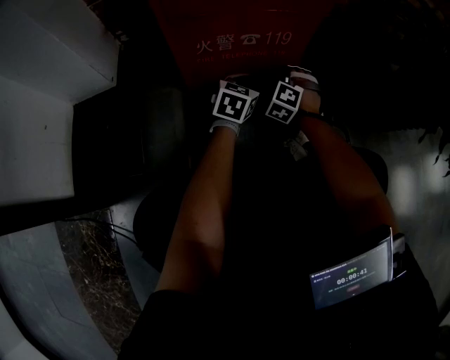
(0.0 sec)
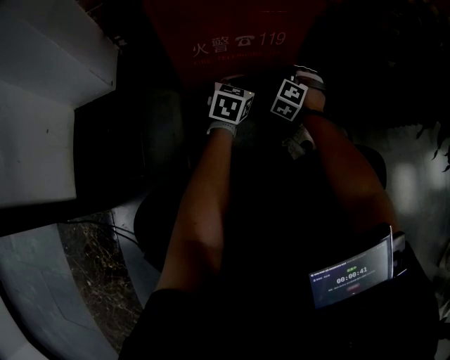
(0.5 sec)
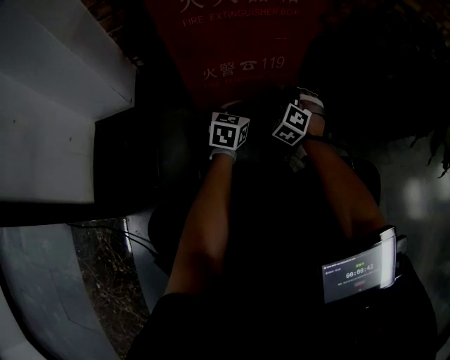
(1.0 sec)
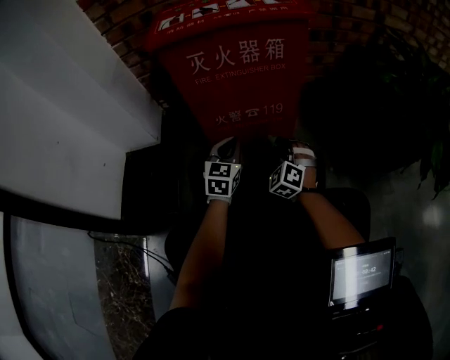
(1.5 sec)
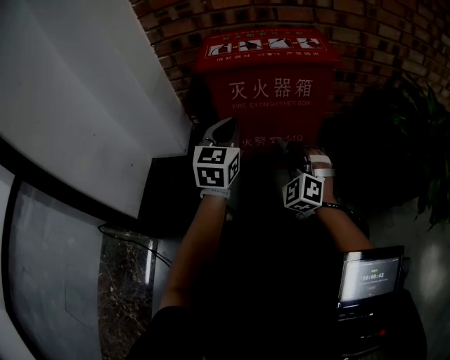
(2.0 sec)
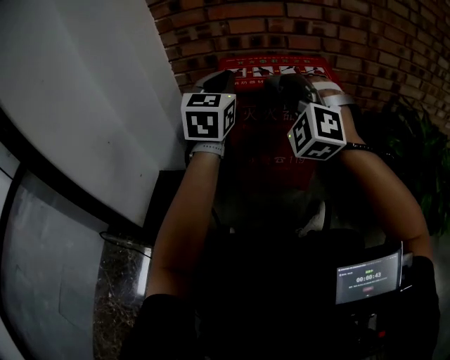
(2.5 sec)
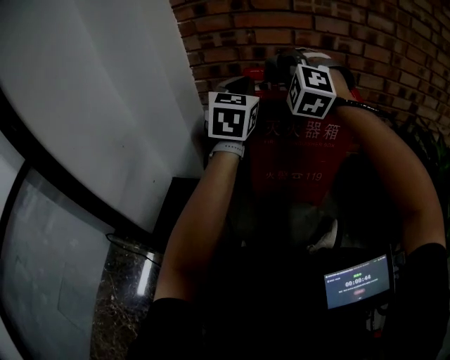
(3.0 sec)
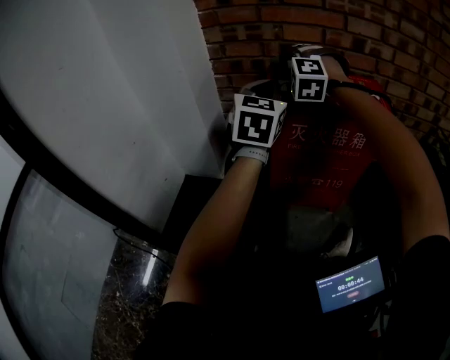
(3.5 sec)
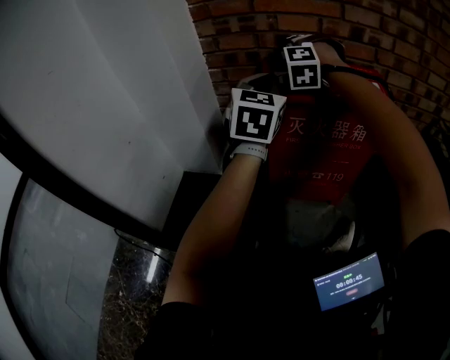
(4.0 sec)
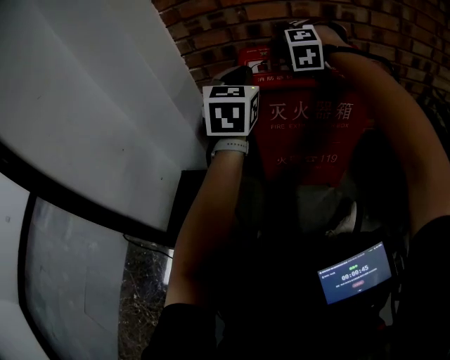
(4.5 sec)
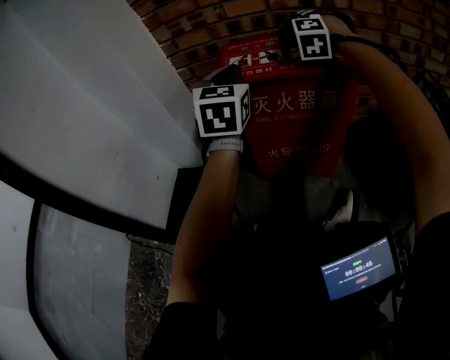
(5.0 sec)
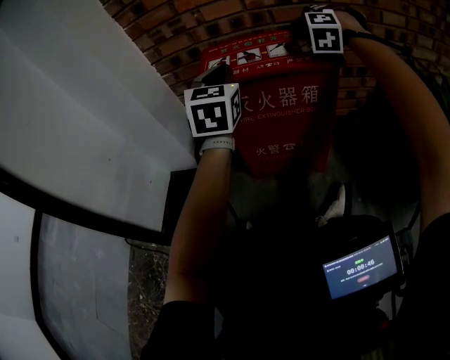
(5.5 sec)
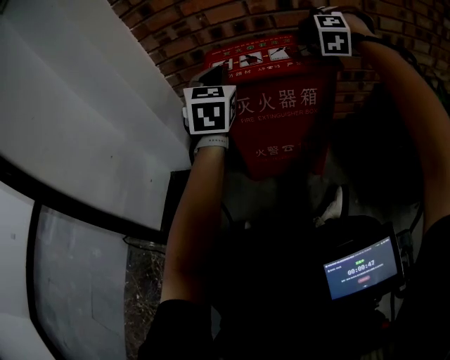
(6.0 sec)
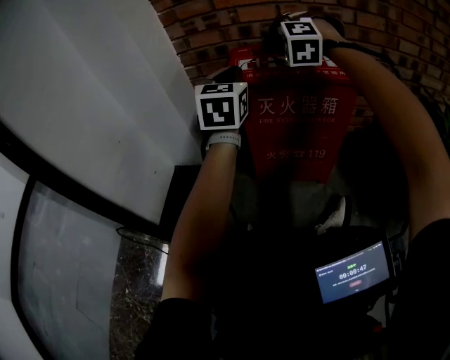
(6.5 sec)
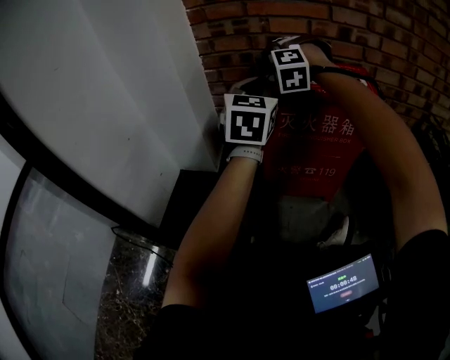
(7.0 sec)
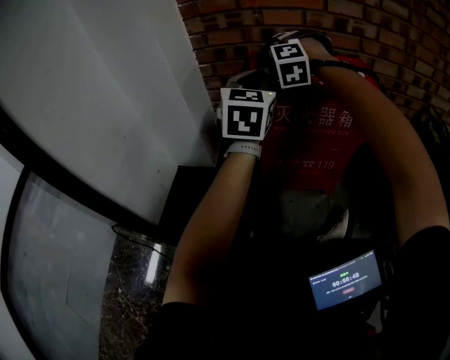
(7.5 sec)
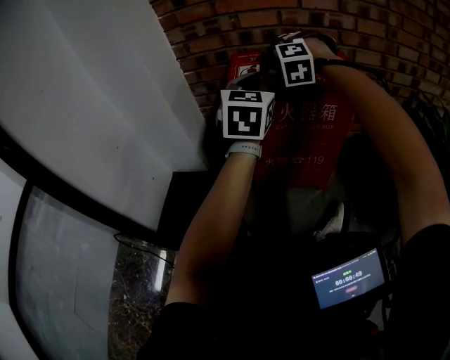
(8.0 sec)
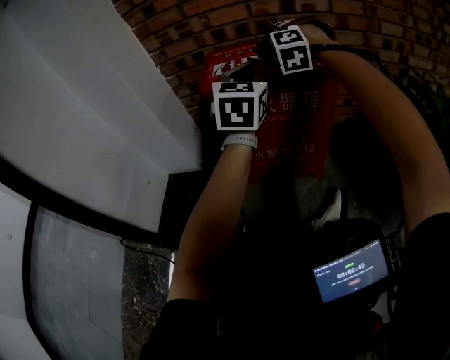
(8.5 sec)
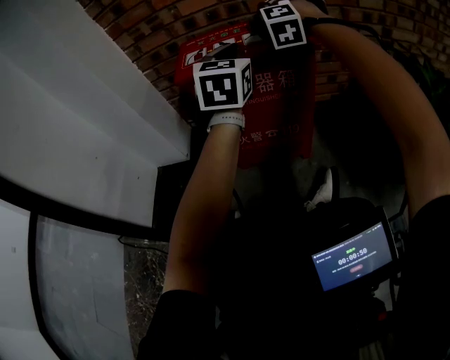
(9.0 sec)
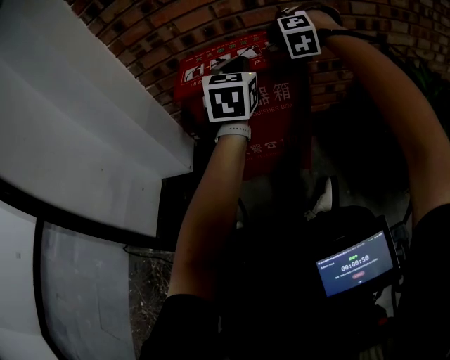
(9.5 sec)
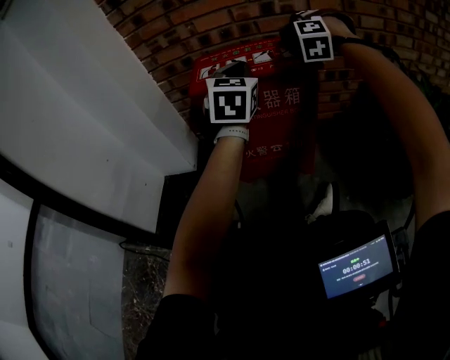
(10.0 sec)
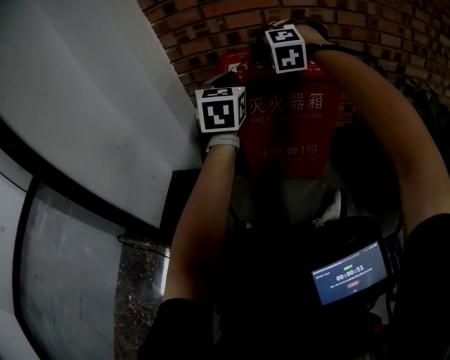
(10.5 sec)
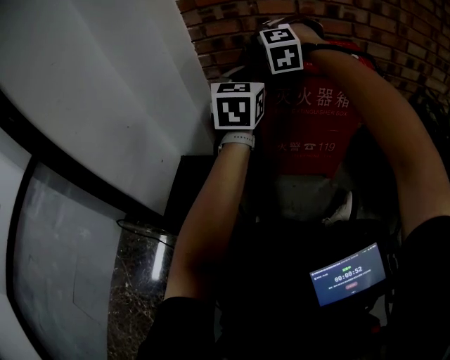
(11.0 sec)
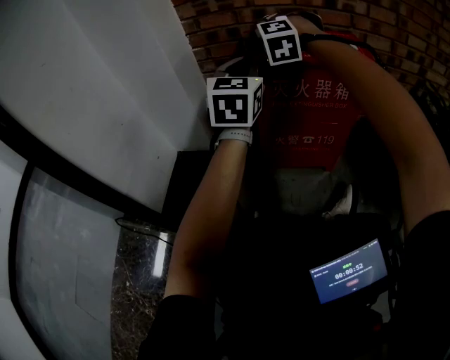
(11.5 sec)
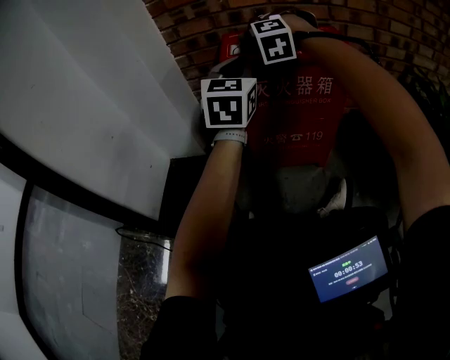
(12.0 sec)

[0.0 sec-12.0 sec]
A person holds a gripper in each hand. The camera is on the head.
0.0 sec to 2.0 sec: The left gripper goes some 35 cm upward, and swivels approximately 30 degrees.
2.0 sec to 4.0 sec: The left gripper heads upward, covering some 15 cm.
4.0 sec to 6.0 sec: The left gripper moves approximately 5 cm.
10.0 sec to 12.0 sec: The left gripper ends up some 10 cm from where it was.

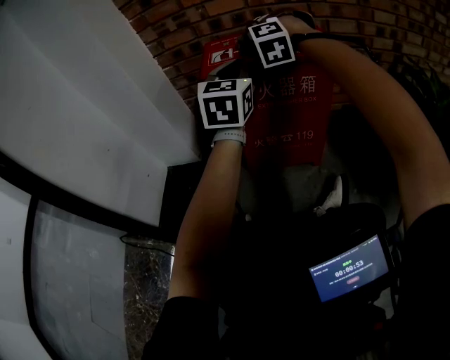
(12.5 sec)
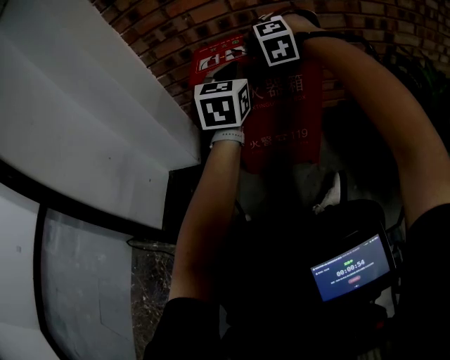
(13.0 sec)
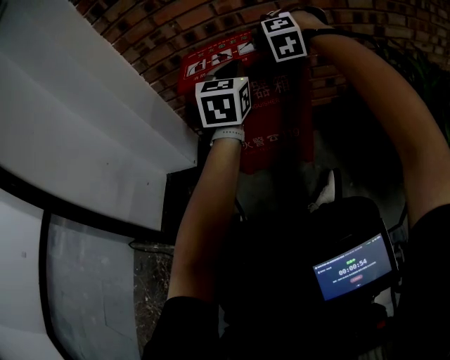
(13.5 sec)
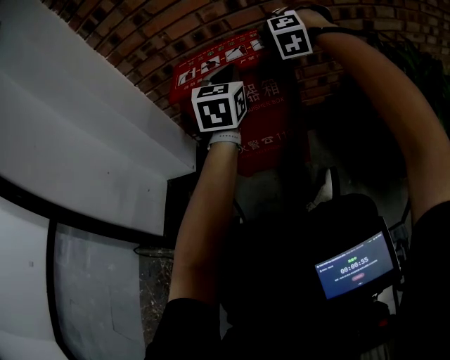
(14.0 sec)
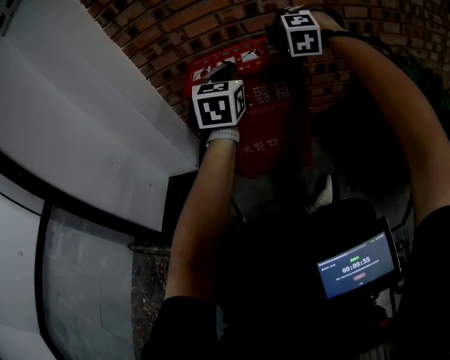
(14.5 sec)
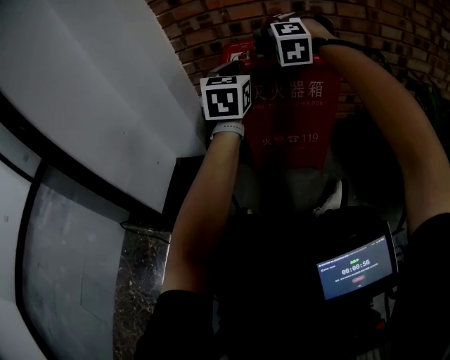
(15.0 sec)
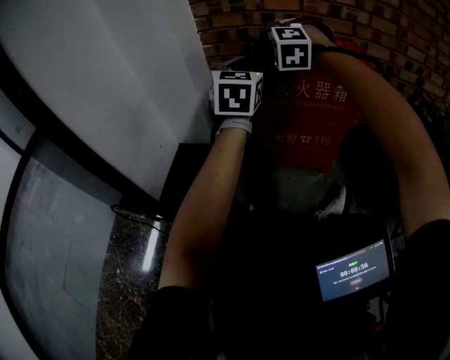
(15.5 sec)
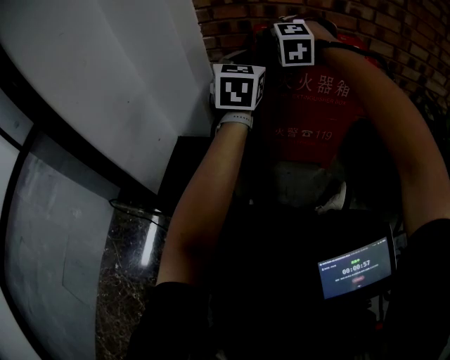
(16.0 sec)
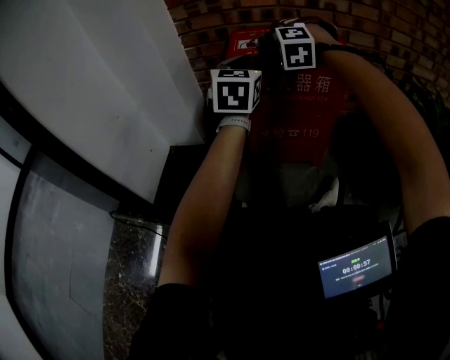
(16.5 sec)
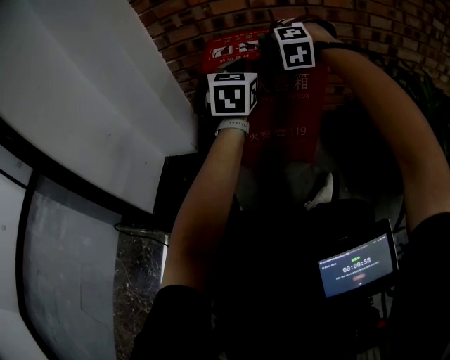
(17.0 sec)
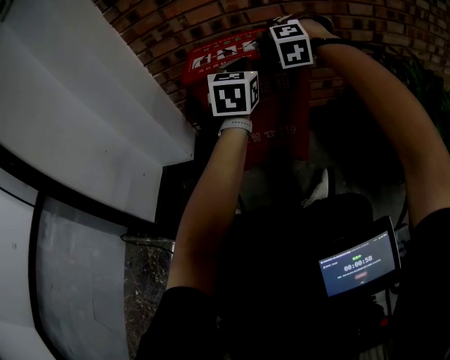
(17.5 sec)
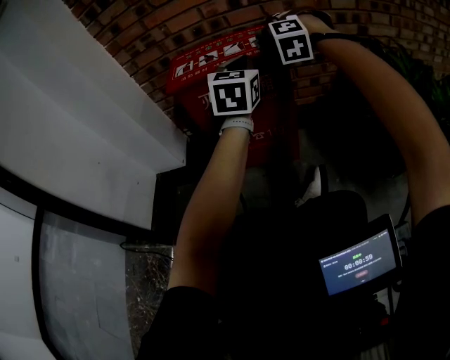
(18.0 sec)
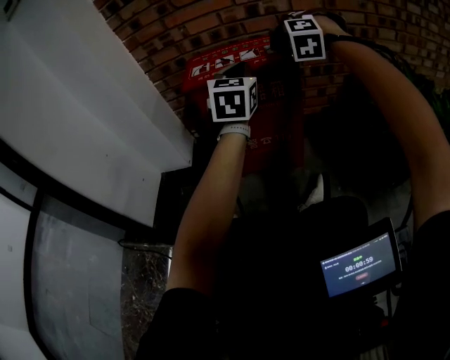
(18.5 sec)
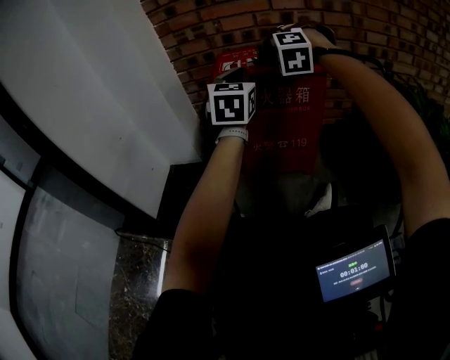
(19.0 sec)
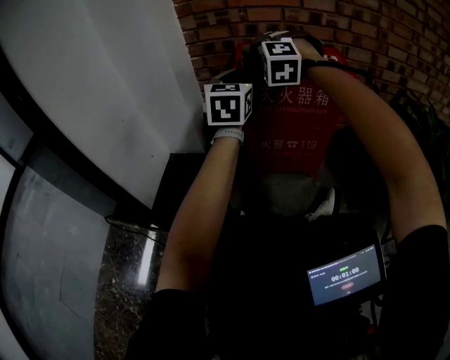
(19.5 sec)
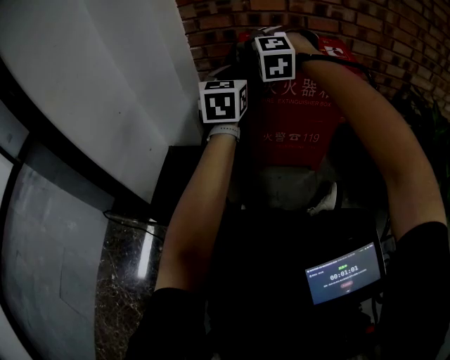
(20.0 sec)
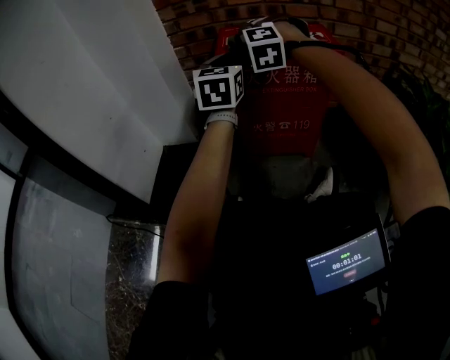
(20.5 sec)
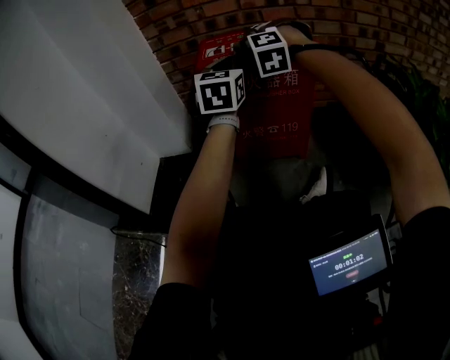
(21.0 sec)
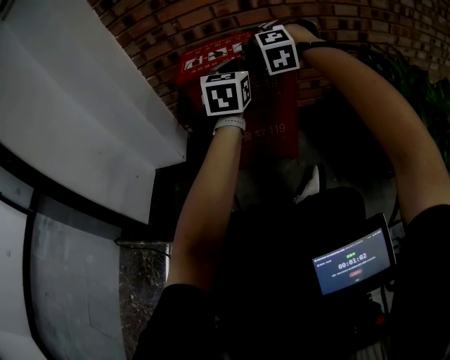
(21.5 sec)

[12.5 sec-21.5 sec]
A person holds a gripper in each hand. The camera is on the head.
12.5 sec to 14.5 sec: The left gripper moves some 5 cm.
17.0 sec to 19.5 sec: The left gripper ends up roughly 10 cm from where it was.
19.5 sec to 21.5 sec: The left gripper moves some 15 cm.

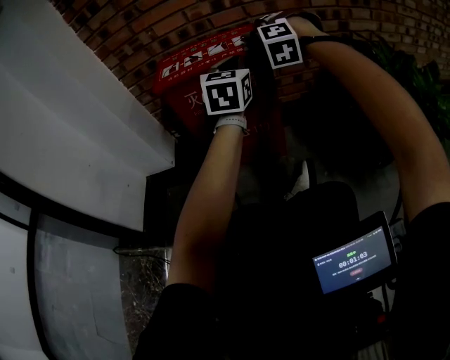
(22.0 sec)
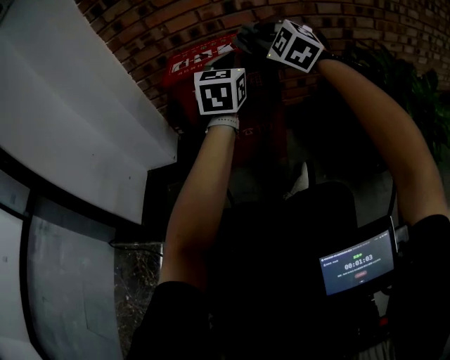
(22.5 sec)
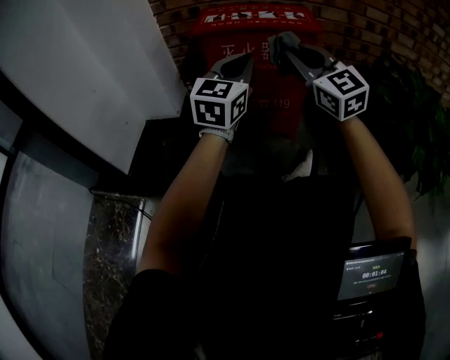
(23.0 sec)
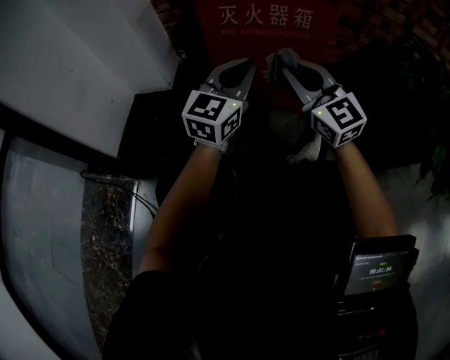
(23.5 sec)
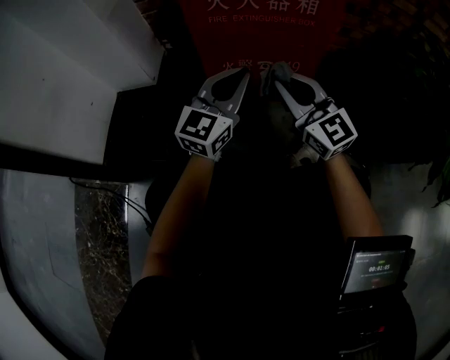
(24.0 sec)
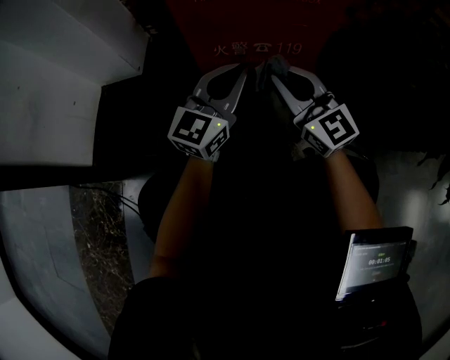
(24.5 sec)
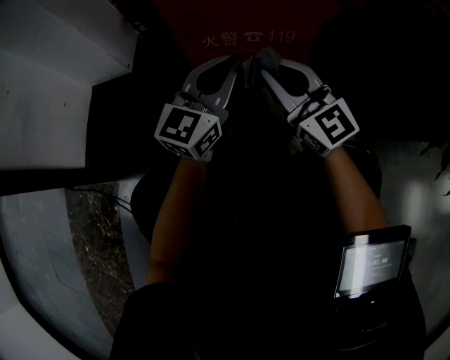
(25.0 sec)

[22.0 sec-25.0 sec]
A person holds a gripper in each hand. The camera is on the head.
22.0 sec to 23.5 sec: The left gripper heads downward, covering about 15 cm.
23.5 sec to 25.0 sec: The left gripper is displaced downward by some 10 cm.

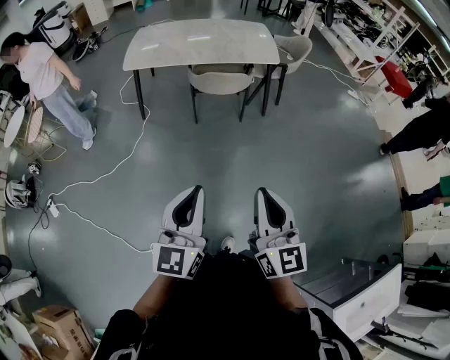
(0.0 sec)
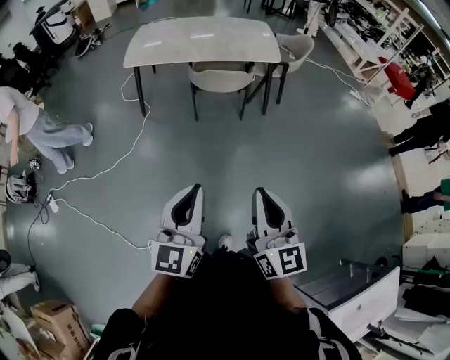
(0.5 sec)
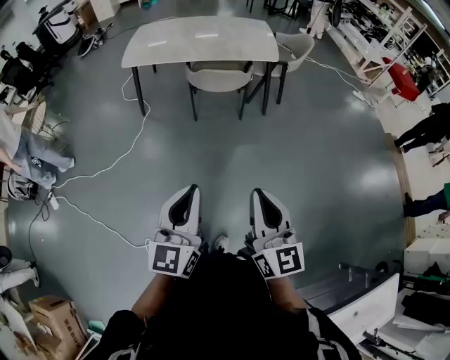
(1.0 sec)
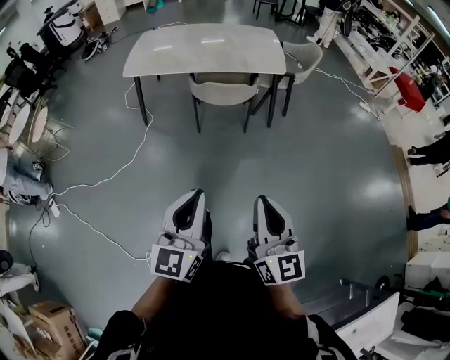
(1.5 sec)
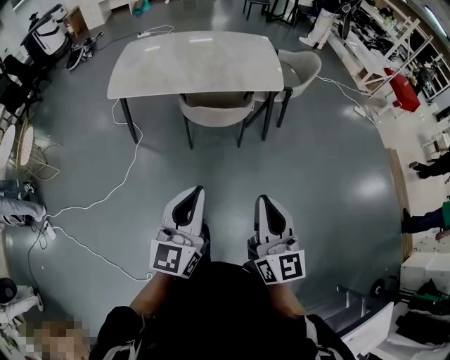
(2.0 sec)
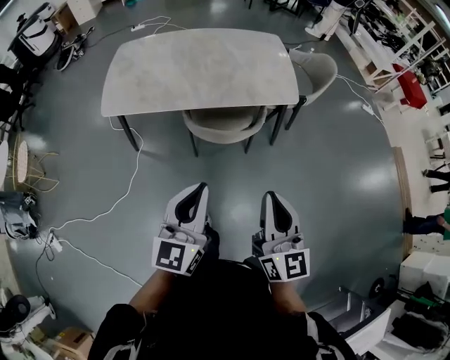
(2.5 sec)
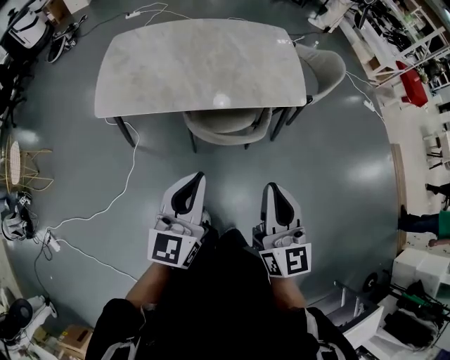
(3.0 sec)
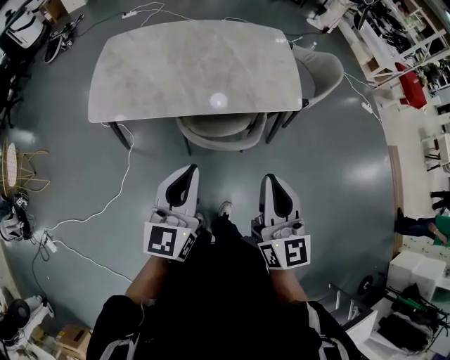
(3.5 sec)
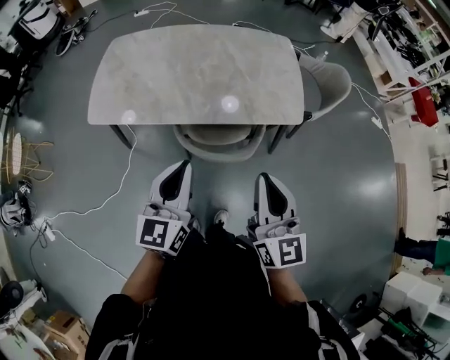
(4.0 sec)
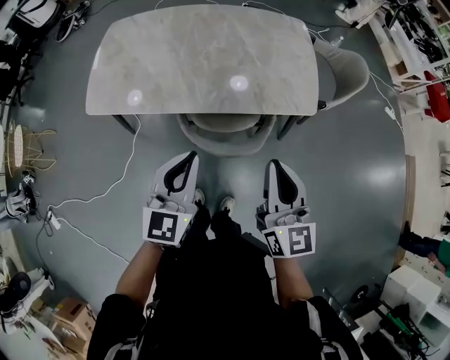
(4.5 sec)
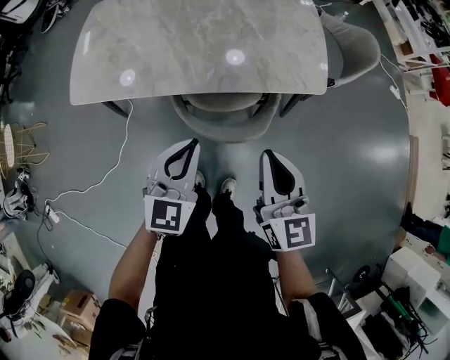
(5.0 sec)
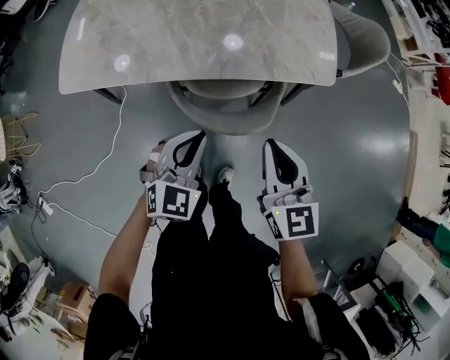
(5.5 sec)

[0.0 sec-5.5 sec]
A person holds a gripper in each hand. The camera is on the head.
0.0 sec to 2.0 sec: Both grippers move forward, approximately 25 cm.
2.0 sec to 3.5 sec: The grippers both shift forward by roughly 35 cm.
3.5 sec to 5.5 sec: Both grippers travel together downward and forward, roughly 25 cm. The left gripper rotates approximately 40 degrees. Meanwhile the right gripper changes its angle by approximately 20 degrees.
